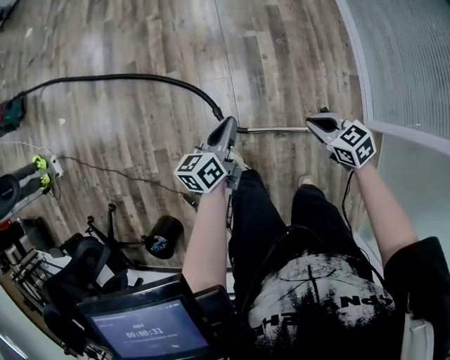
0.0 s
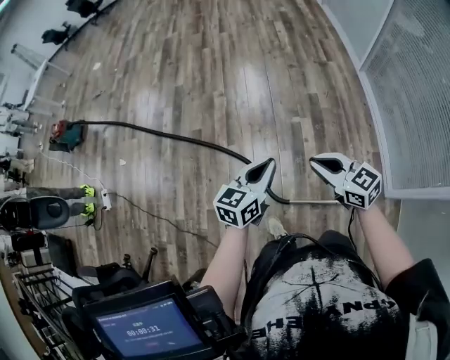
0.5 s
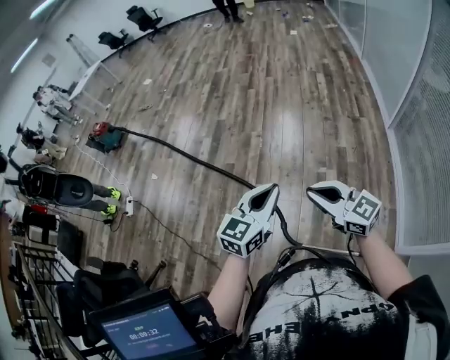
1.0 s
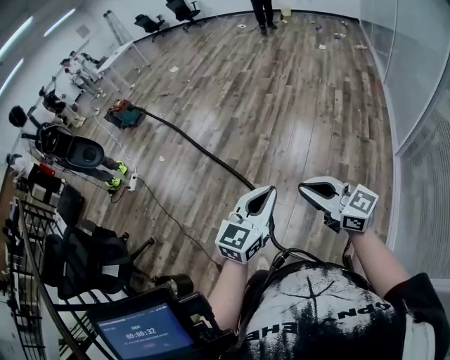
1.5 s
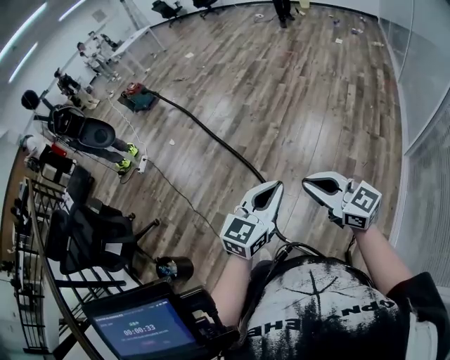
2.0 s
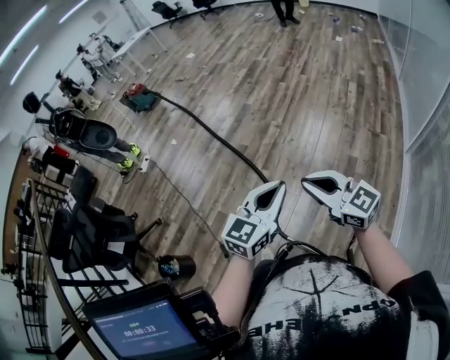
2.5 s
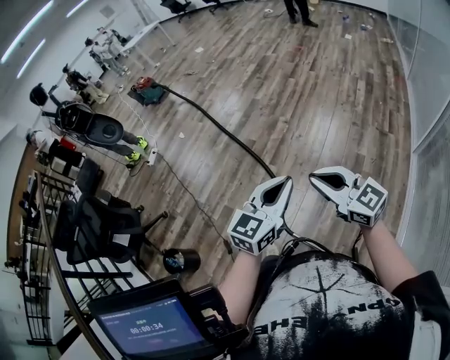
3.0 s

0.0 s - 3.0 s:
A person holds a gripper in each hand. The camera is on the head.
0.0 s - 1.5 s: Both grippers travel together upward, approximately 40 cm. The left gripper rotates around the line of its fingers by roughly 40 degrees, clockwise from behind; the right gripper angles its fingers upward, by roughly 50 degrees.
1.5 s - 3.0 s: The left gripper moves some 5 cm.

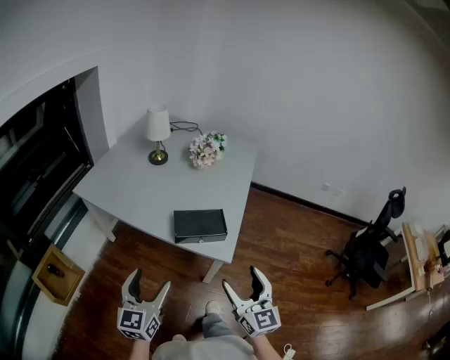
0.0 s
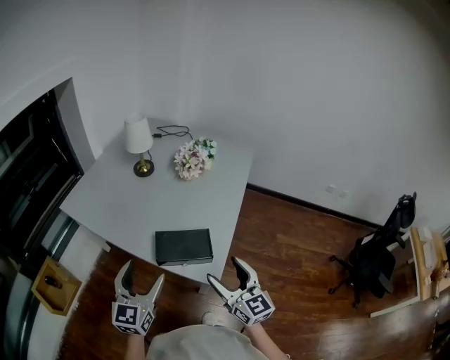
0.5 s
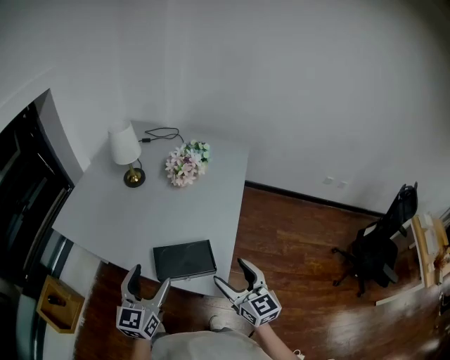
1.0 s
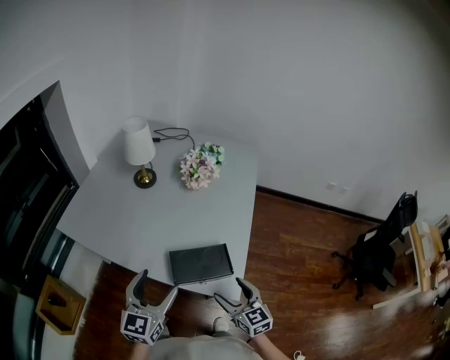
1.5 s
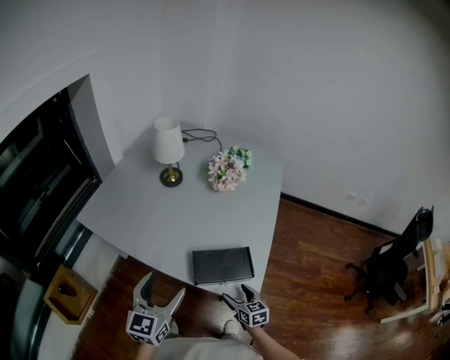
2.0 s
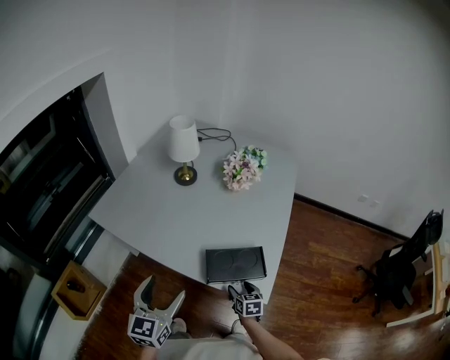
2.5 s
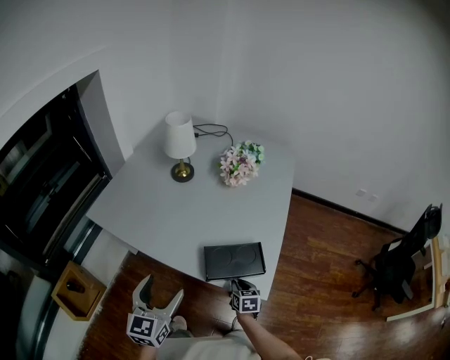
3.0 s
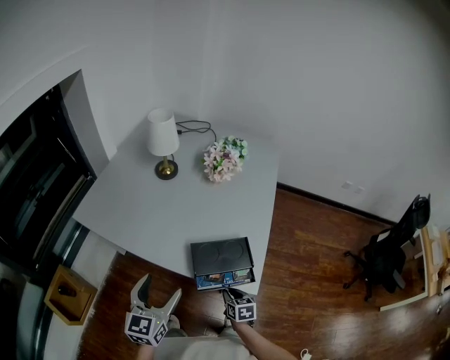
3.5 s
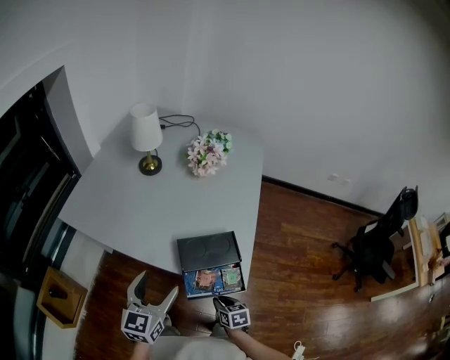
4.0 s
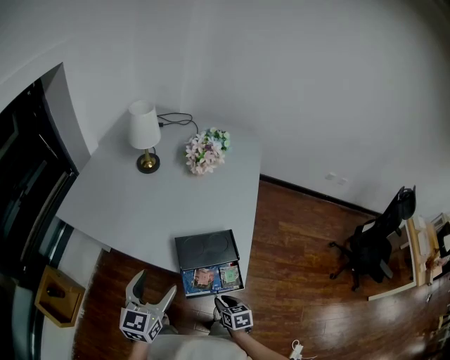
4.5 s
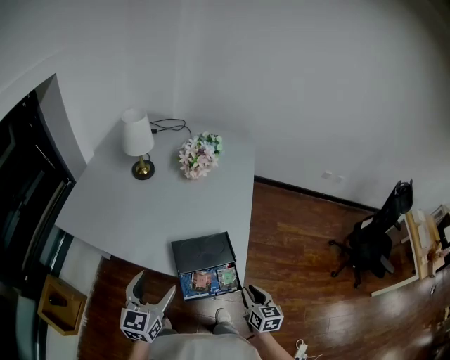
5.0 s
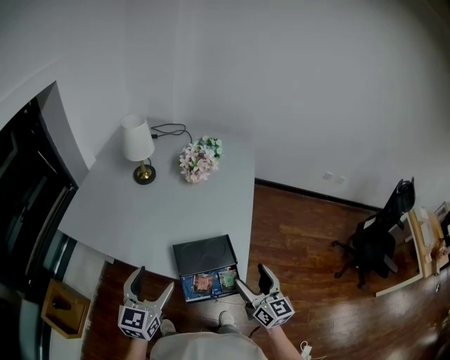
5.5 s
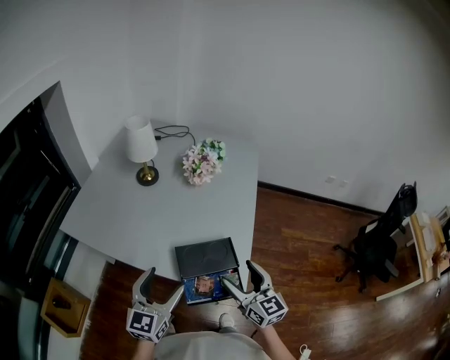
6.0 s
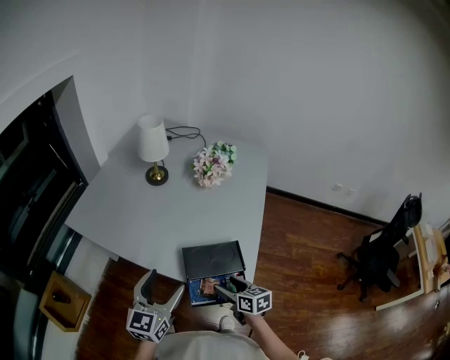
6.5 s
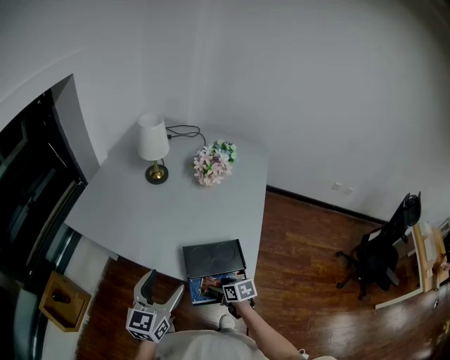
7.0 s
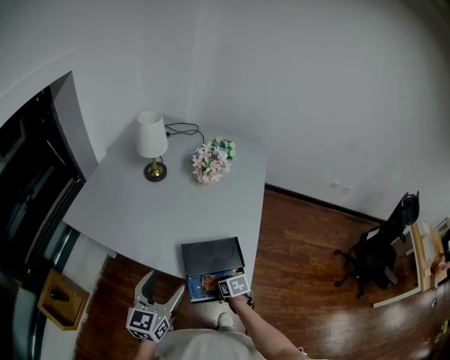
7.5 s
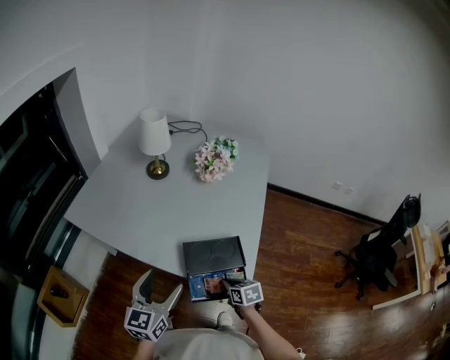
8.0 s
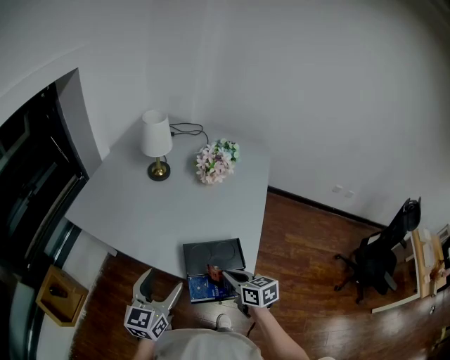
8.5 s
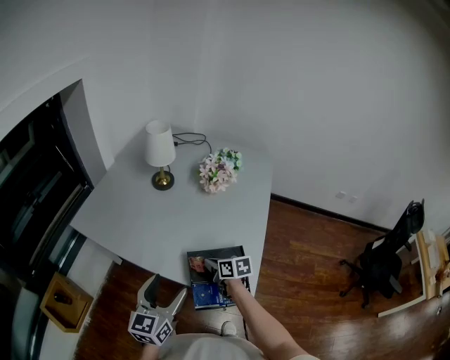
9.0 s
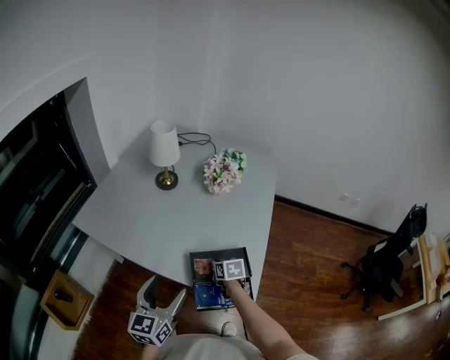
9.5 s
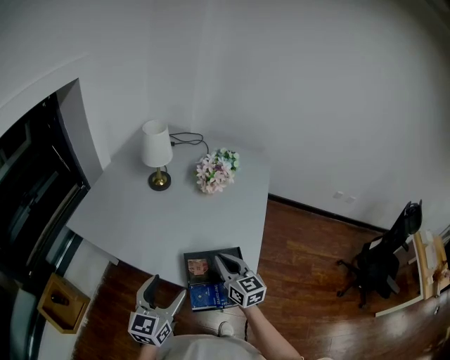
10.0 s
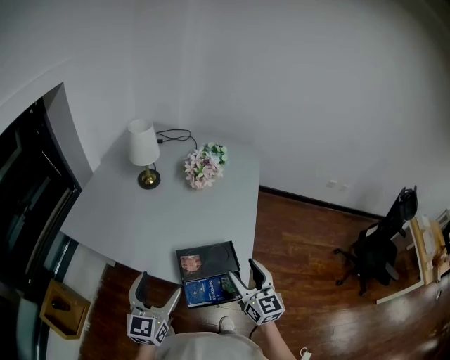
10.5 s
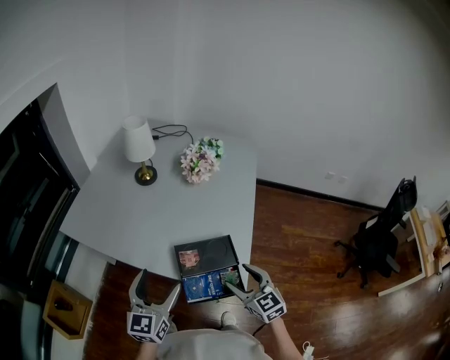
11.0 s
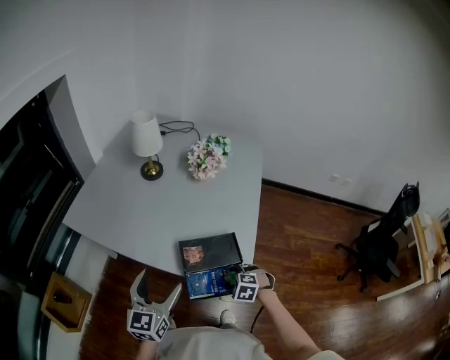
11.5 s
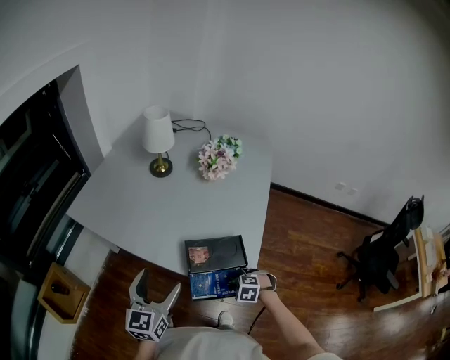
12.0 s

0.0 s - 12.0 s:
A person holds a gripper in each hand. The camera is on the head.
0.0 s - 2.0 s: The right gripper is displaced downward and forward by about 35 cm, and angles its fingers downward, by roughly 30 degrees. The left gripper heads forward, covering some 20 cm.
2.0 s - 4.0 s: The right gripper moves backward, some 10 cm, and closes up.
4.0 s - 6.0 s: The right gripper is displaced upward by some 30 cm, tilts its fingers some 40 degrees upward, and opens its fingers.
6.0 s - 8.0 s: The right gripper shifts some 25 cm downward, tilts its fingers approximately 40 degrees downward, and closes its fingers.
8.0 s - 10.0 s: The right gripper swings up and down, some 20 cm each way, with 2 reversals, and tips its fingers upward by approximately 40 degrees.
10.0 s - 12.0 s: The right gripper heads downward, covering some 20 cm, and points its fingers about 60 degrees further downward.

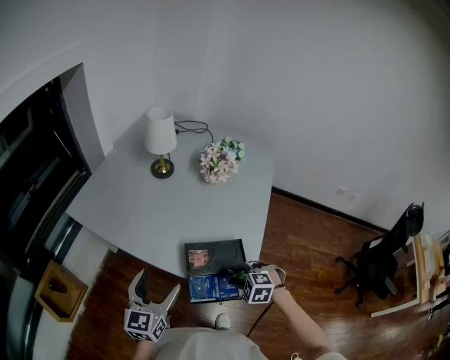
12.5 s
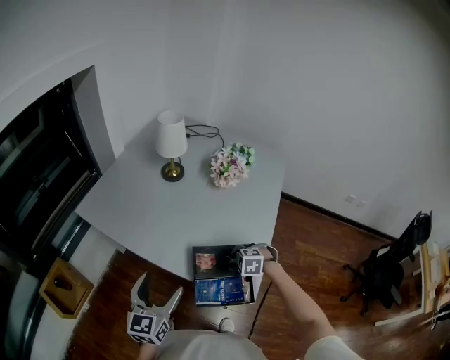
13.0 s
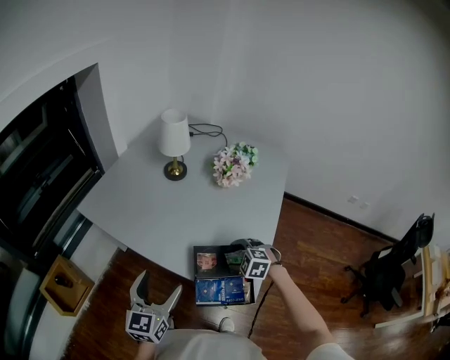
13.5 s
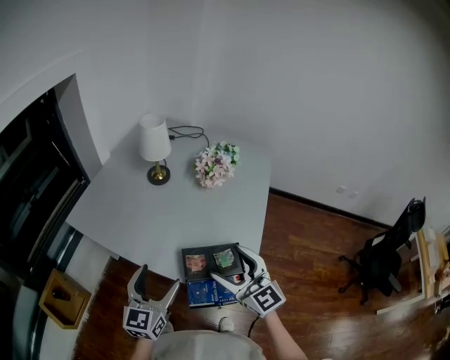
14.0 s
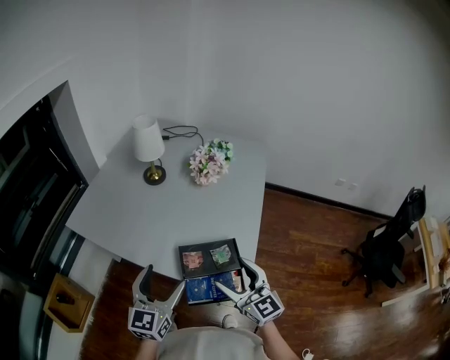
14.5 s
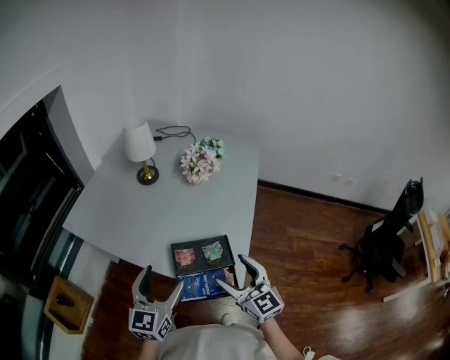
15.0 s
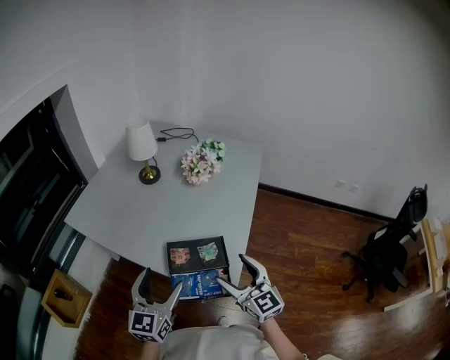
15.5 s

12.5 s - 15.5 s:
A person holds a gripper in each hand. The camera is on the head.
12.5 s - 14.0 s: The right gripper shifts approximately 25 cm upward, tilts its fingers approximately 60 degrees upward, and opens its fingers.
14.0 s - 15.5 s: The right gripper shifts approximately 10 cm to the right, downward and backward. Meanwhile the left gripper moves to the right, about 5 cm.

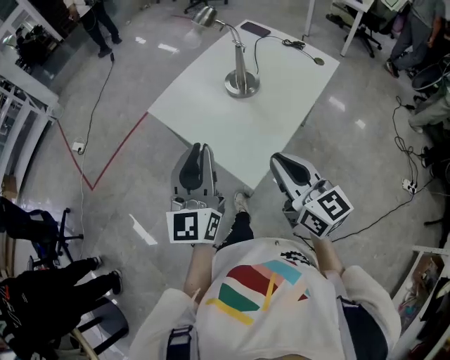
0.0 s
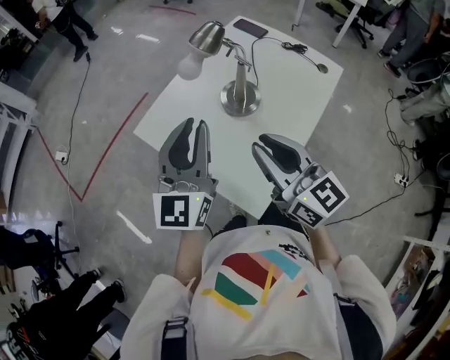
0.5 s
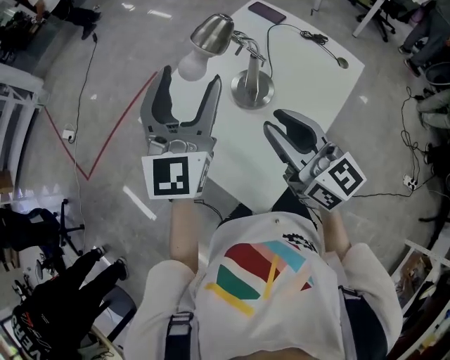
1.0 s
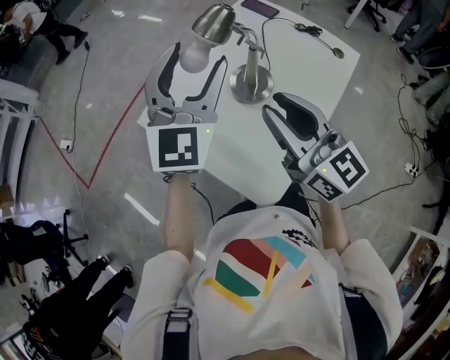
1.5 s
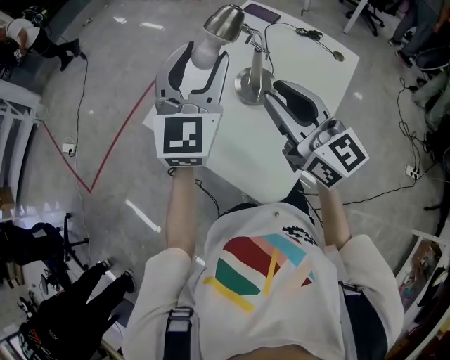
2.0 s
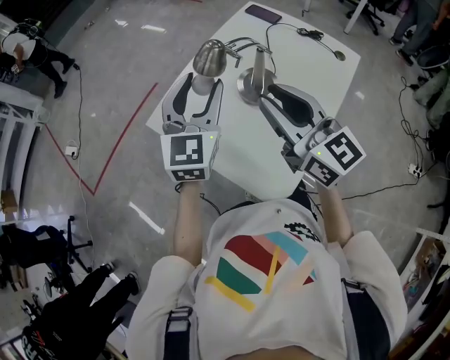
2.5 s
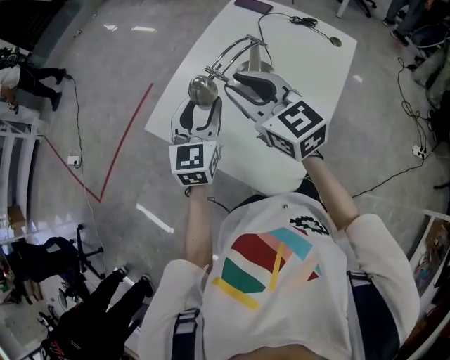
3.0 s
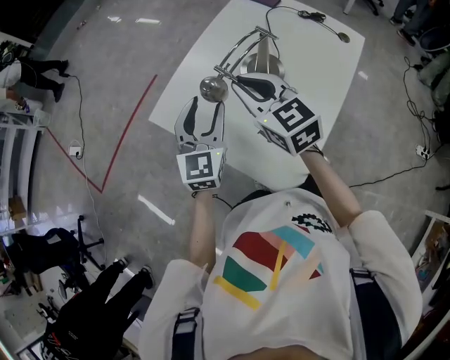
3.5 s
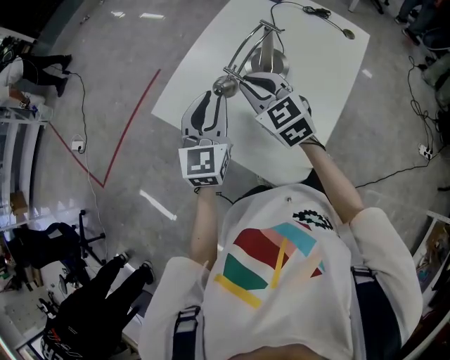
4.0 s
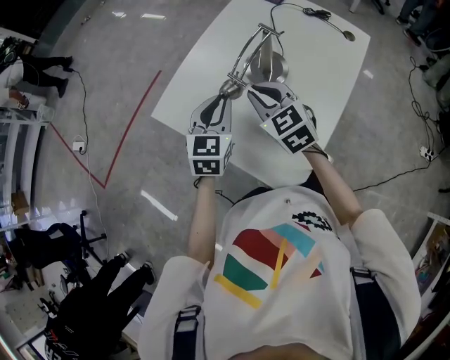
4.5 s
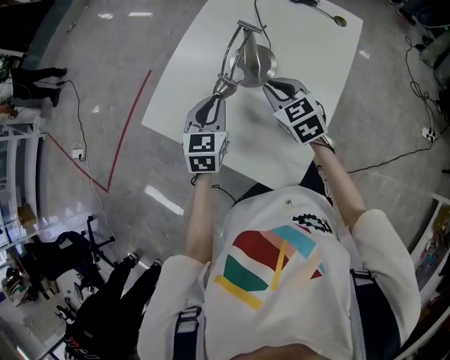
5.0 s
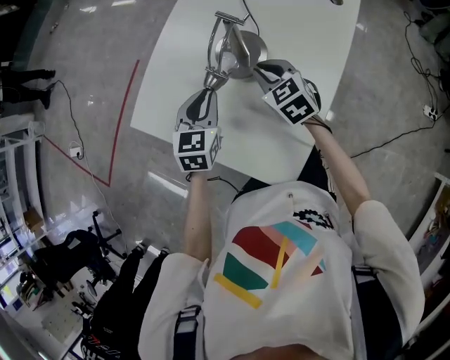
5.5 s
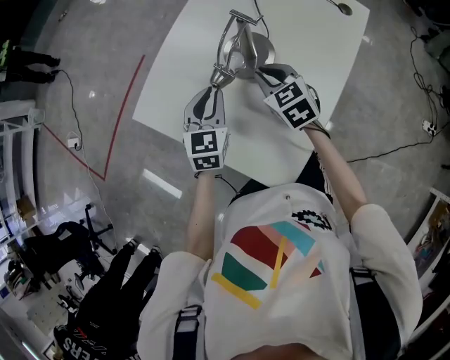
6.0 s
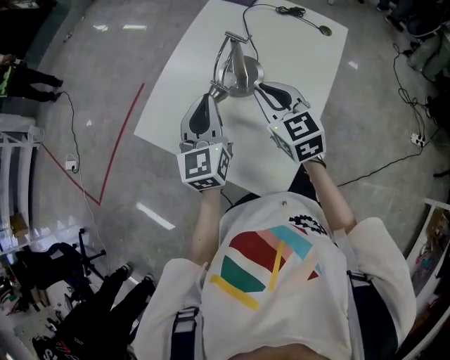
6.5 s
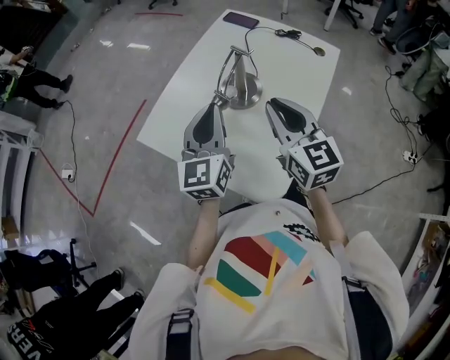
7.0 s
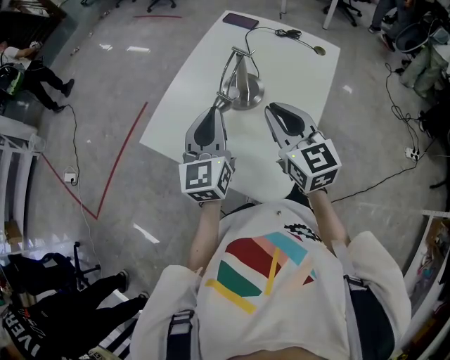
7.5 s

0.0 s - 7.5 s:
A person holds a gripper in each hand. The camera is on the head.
0.0 s - 2.0 s: The grippers both shift forward by some 30 cm. The right gripper opens, while the left gripper turns by some 20 degrees, and opens.
2.0 s - 4.0 s: The right gripper is displaced downward, to the left and forward by about 20 cm, and turns by some 30 degrees, while the left gripper moves downward, roughly 15 cm, and closes up.
4.0 s - 5.5 s: The right gripper heads to the right, downward and forward, covering some 20 cm. Meanwhile the left gripper shifts roughly 15 cm downward, forward and to the right, and rotates approximately 20 degrees.
5.5 s - 7.5 s: Both grippers move upward and backward, some 20 cm. The left gripper changes its angle by some 30 degrees. The right gripper swivels about 30 degrees.
